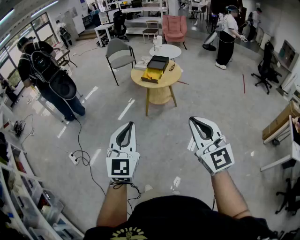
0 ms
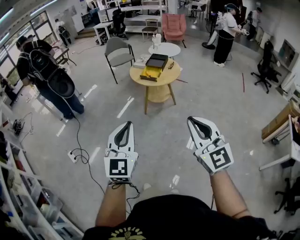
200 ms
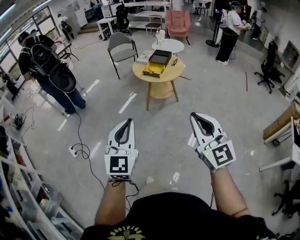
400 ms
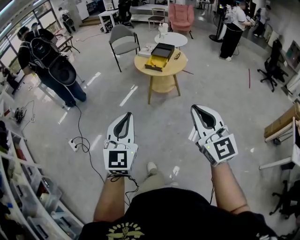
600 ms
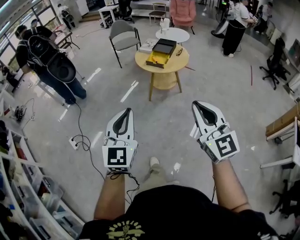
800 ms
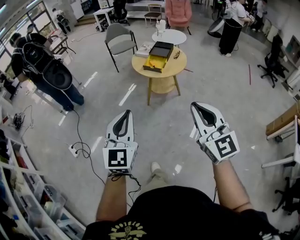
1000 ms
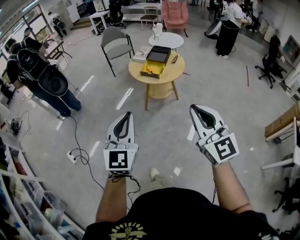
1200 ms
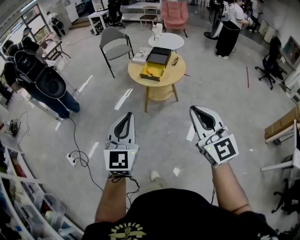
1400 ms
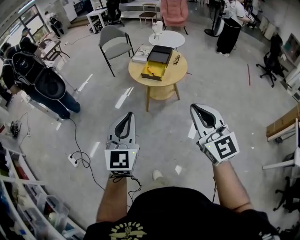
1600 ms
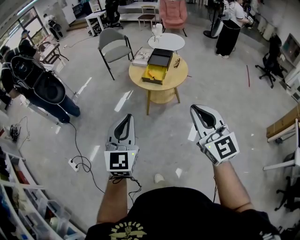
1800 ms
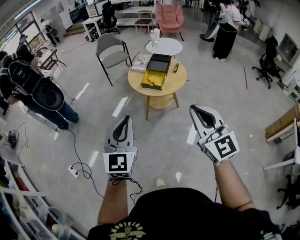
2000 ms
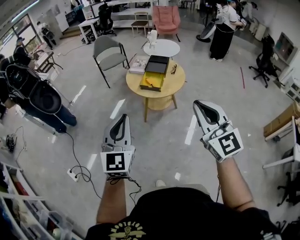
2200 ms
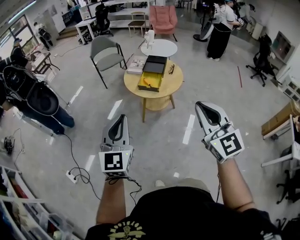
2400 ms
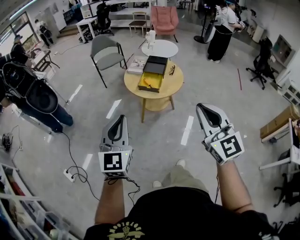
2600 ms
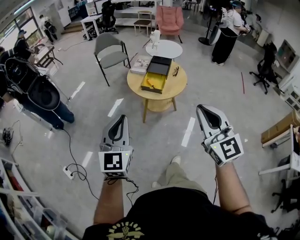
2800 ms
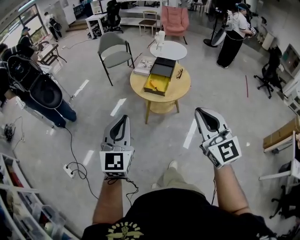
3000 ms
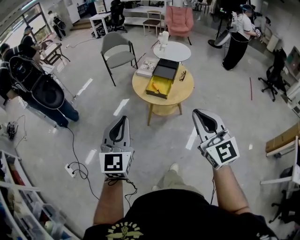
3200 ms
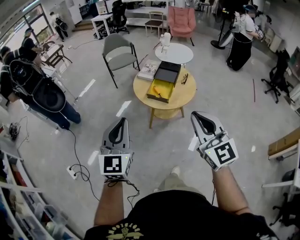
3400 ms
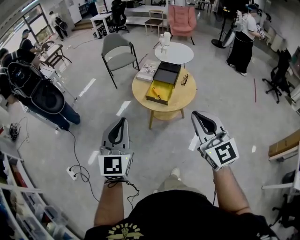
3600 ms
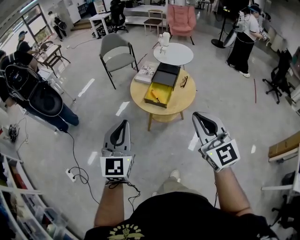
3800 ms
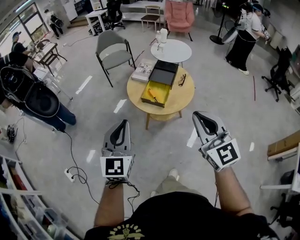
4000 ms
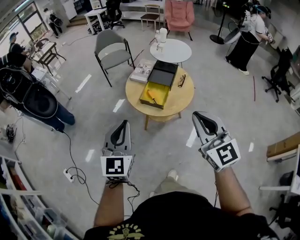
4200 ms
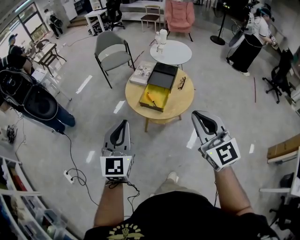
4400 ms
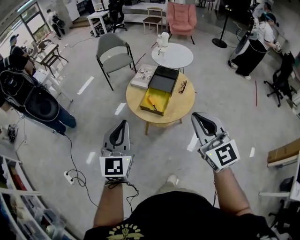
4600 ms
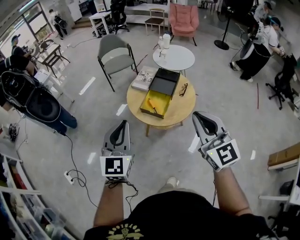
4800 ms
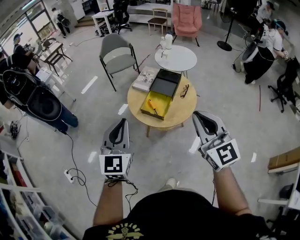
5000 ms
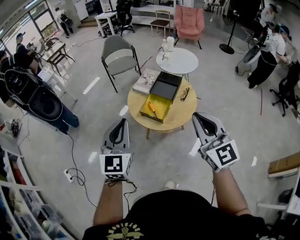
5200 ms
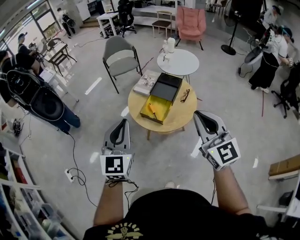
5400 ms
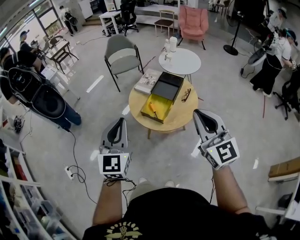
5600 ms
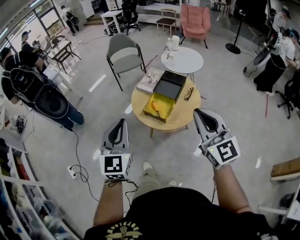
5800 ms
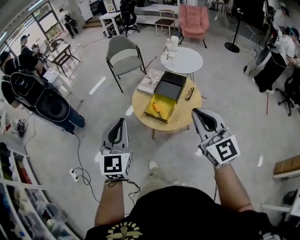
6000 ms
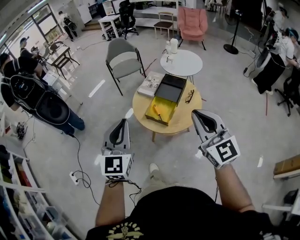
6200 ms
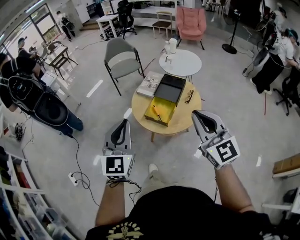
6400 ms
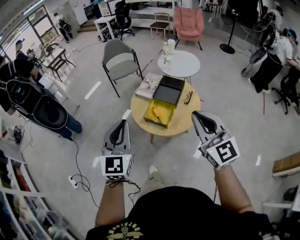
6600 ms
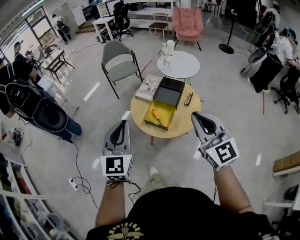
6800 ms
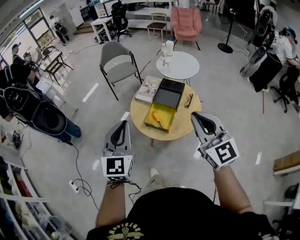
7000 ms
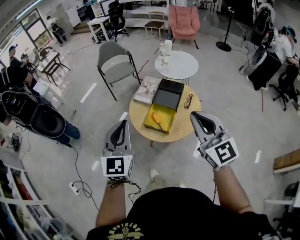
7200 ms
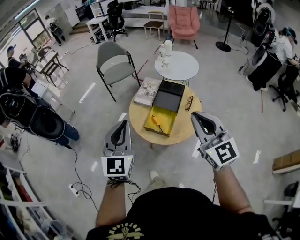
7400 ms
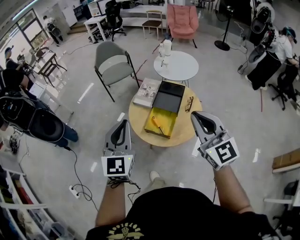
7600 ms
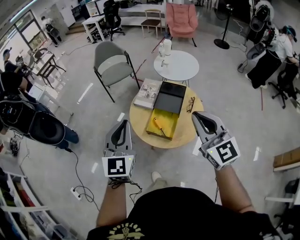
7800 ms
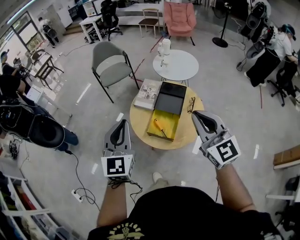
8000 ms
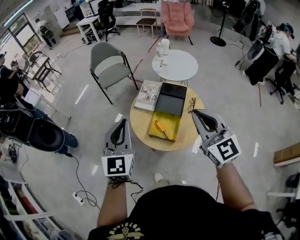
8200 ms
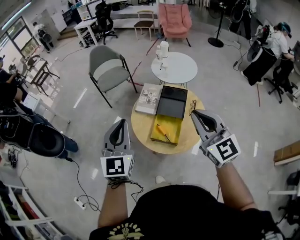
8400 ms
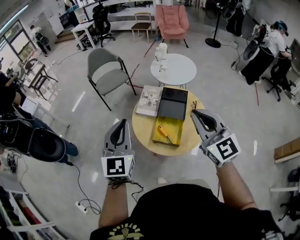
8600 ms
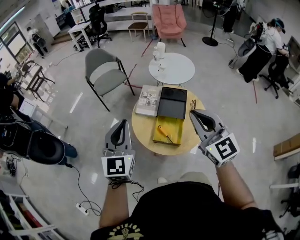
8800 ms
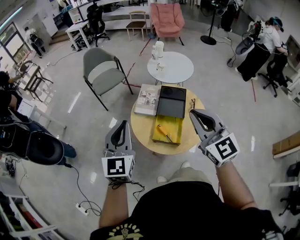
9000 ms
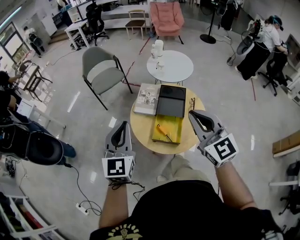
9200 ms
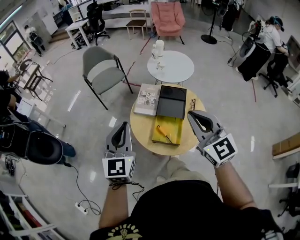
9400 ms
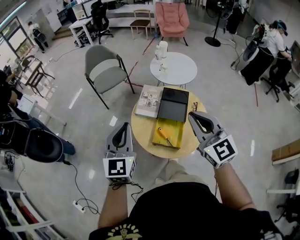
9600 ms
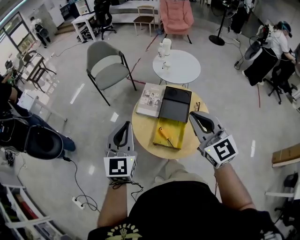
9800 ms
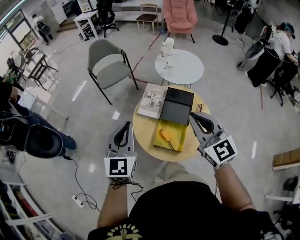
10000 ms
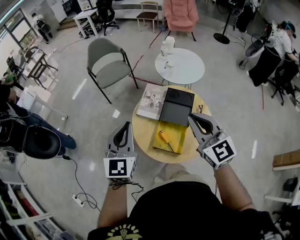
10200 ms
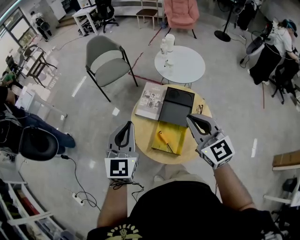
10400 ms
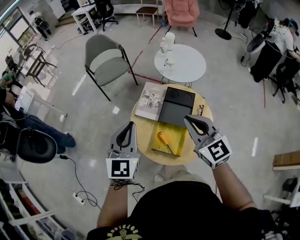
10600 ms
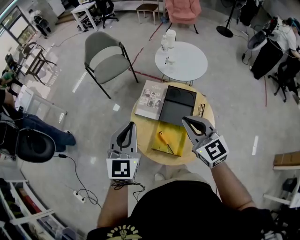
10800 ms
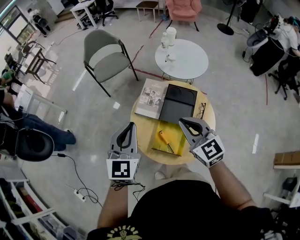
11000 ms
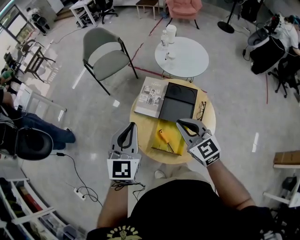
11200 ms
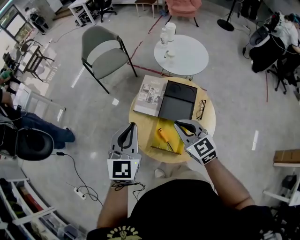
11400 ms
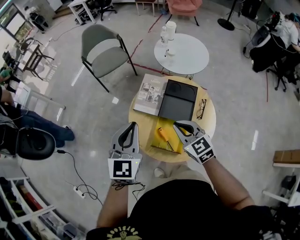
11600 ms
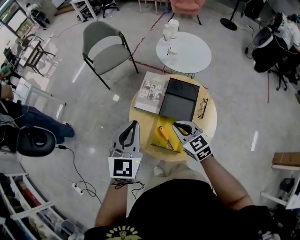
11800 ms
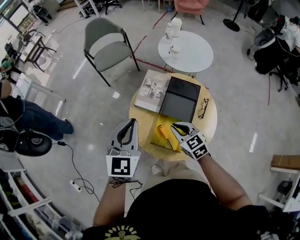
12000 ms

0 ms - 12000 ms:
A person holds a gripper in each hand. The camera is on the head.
0 ms - 1600 ms: Both grippers move forward, roughly 25 cm.
1600 ms - 3000 ms: The right gripper heads forward, covering about 10 cm; the left gripper is displaced forward and to the left by about 10 cm.
3000 ms - 4400 ms: The right gripper is displaced forward by about 20 cm. The left gripper moves forward and to the right, some 20 cm.
4400 ms - 6000 ms: The right gripper heads forward and to the right, covering about 10 cm; the left gripper travels forward by roughly 5 cm.
6000 ms - 7600 ms: The grippers both shift forward by about 15 cm.
7600 ms - 9000 ms: Both grippers travel together forward and to the left, roughly 10 cm.
9000 ms - 10400 ms: The left gripper moves forward, about 10 cm. The right gripper shifts roughly 15 cm forward and downward.
10400 ms - 12000 ms: The right gripper moves downward, some 25 cm, and swivels roughly 30 degrees. Meanwhile the left gripper heads downward, covering about 5 cm.

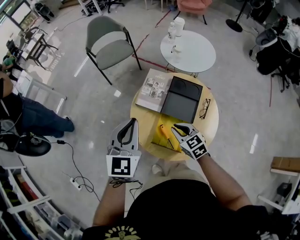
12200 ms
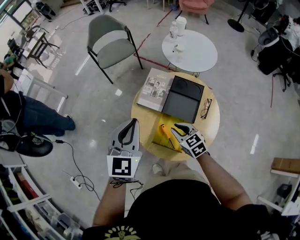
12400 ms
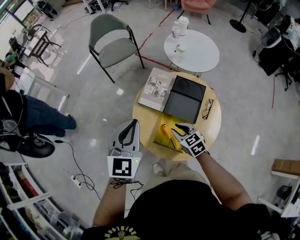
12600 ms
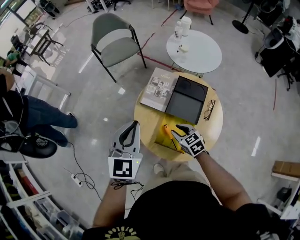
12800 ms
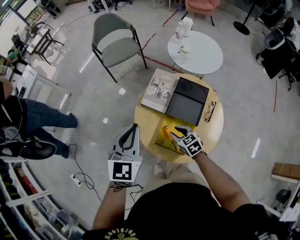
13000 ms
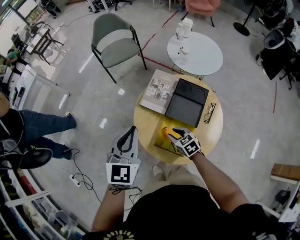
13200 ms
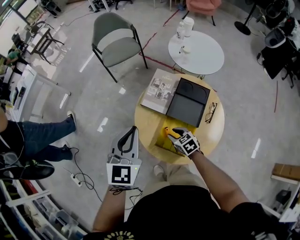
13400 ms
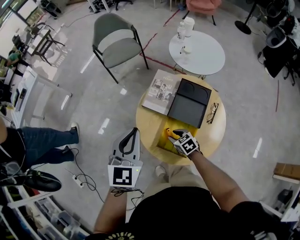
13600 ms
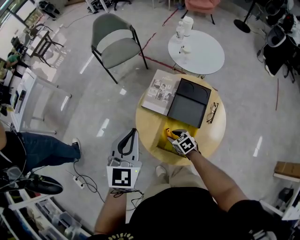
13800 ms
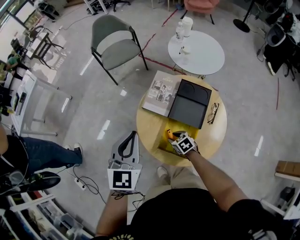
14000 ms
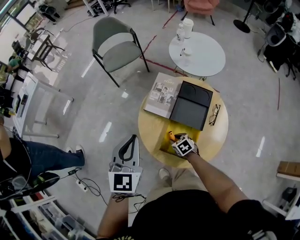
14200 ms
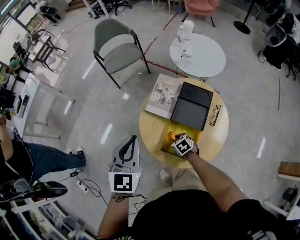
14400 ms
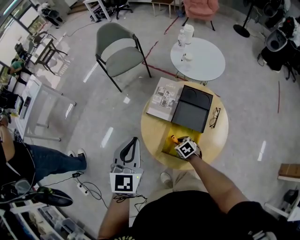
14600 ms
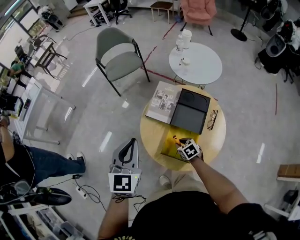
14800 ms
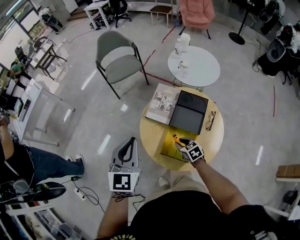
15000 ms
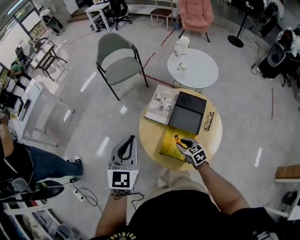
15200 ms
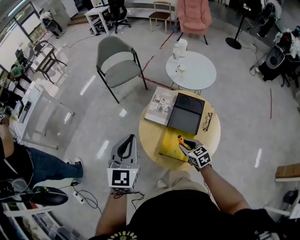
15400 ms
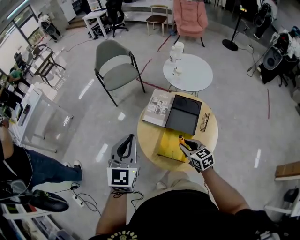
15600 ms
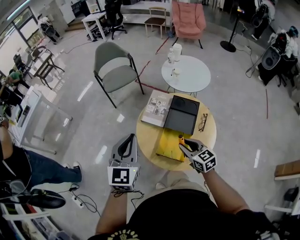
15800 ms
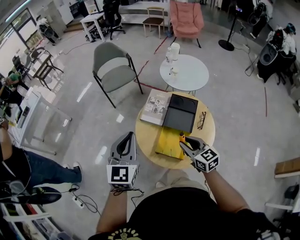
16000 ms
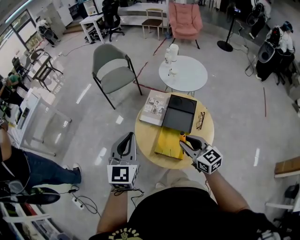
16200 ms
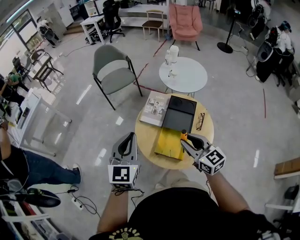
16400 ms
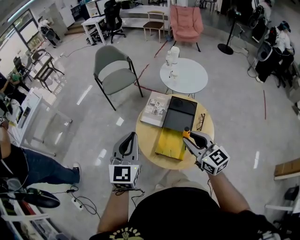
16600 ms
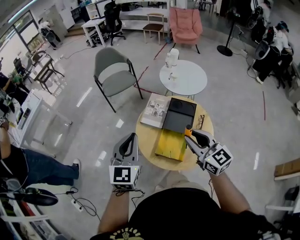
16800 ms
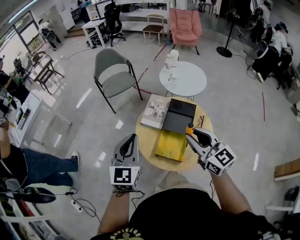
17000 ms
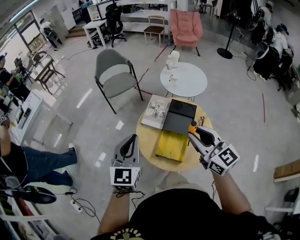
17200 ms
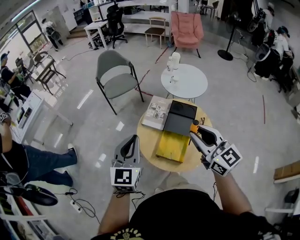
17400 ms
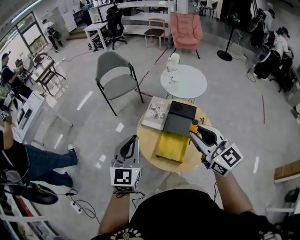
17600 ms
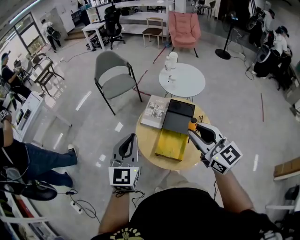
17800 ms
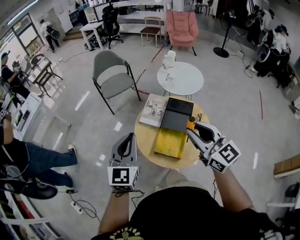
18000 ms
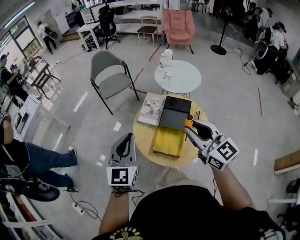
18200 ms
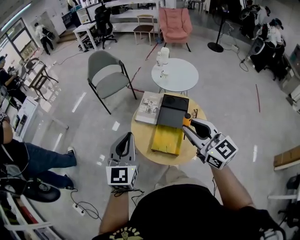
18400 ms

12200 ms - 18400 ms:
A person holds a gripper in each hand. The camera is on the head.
12200 ms - 13800 ms: The right gripper goes some 15 cm downward, rotates about 20 degrees, and opens.
13800 ms - 15400 ms: The left gripper shifts by some 5 cm. Meanwhile the right gripper shifts some 15 cm upward.
15400 ms - 16800 ms: The right gripper shifts roughly 25 cm upward, and rotates approximately 30 degrees.
16800 ms - 18400 ms: The right gripper moves upward, roughly 5 cm.

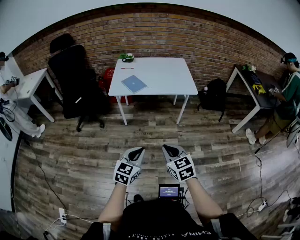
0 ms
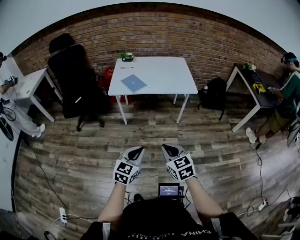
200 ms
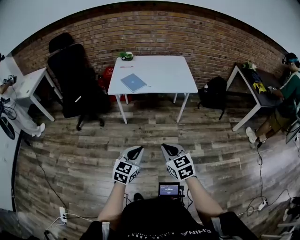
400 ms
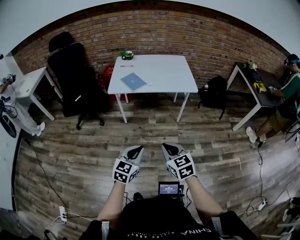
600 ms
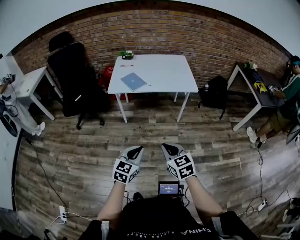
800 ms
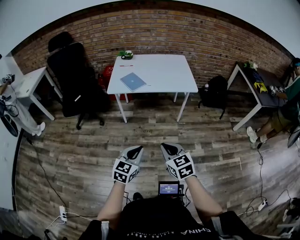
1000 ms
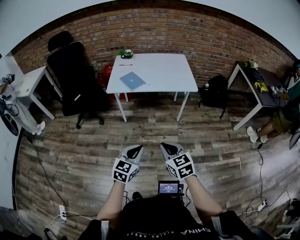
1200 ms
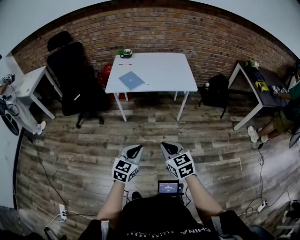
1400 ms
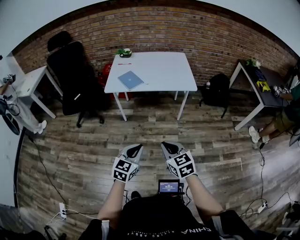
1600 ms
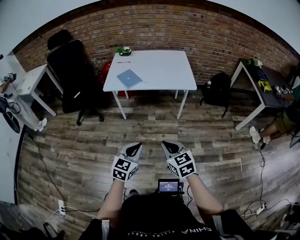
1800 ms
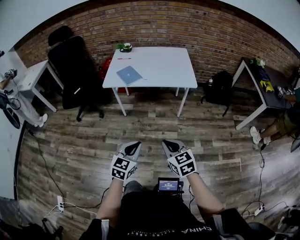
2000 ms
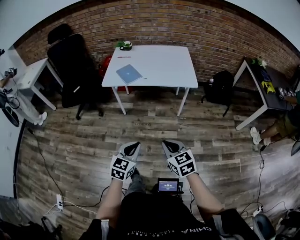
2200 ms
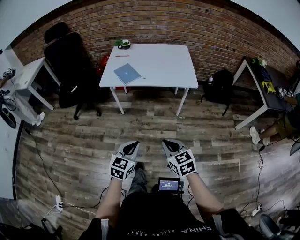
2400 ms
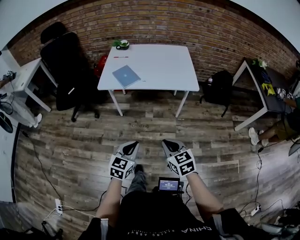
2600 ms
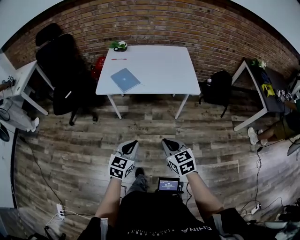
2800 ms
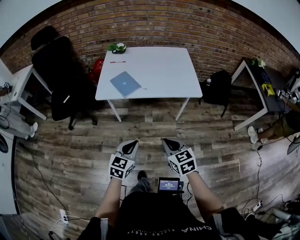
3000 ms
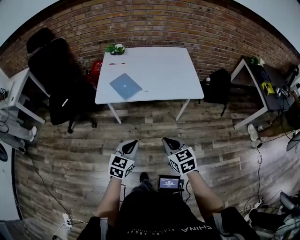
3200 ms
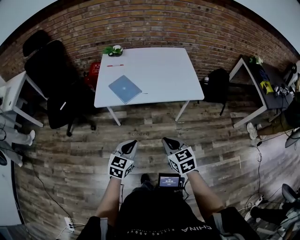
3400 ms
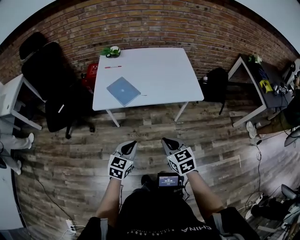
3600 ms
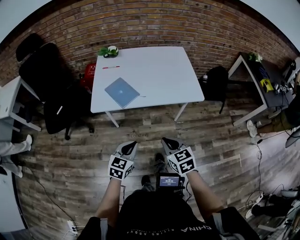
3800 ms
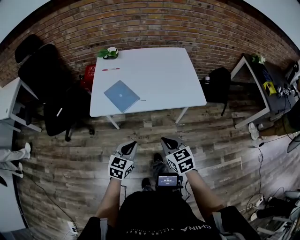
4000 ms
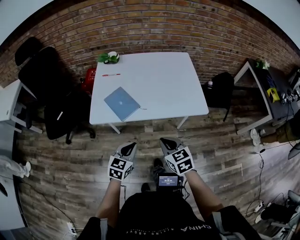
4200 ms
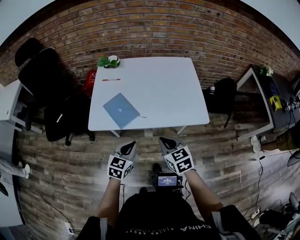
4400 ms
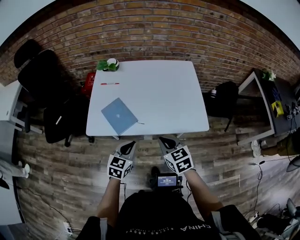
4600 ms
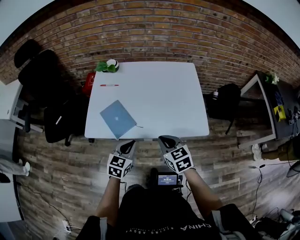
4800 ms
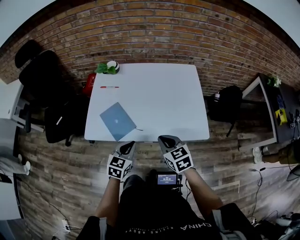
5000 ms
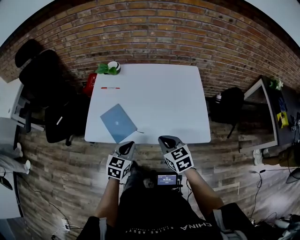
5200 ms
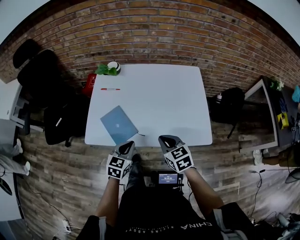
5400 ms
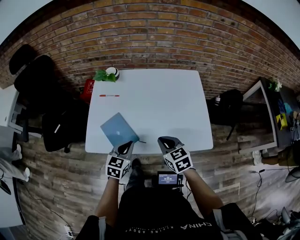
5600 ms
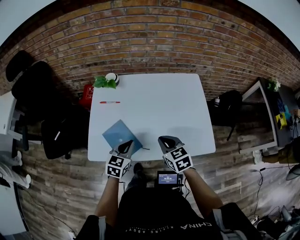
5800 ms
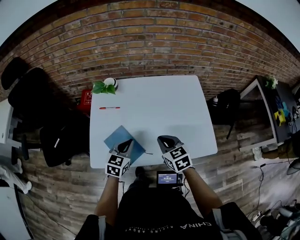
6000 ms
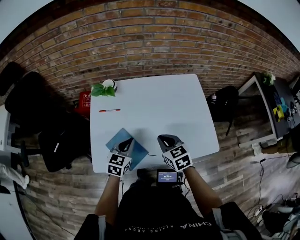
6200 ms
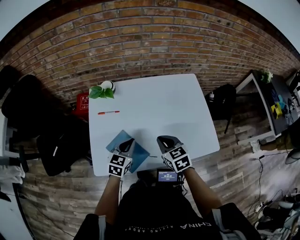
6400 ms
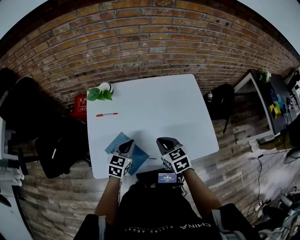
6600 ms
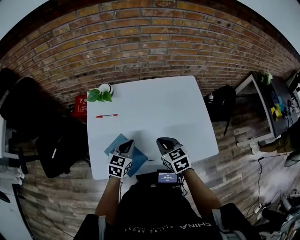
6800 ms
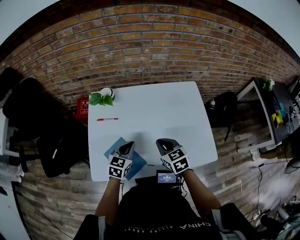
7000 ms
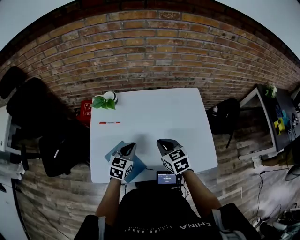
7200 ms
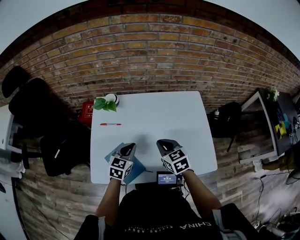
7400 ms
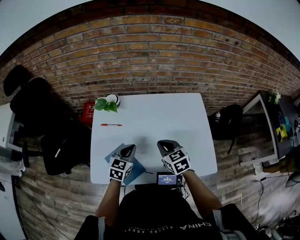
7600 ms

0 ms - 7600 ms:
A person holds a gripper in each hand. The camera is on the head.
0 ms - 1600 ms: The right gripper moves about 5 cm. The left gripper changes place by approximately 5 cm.
1600 ms - 3000 ms: The two grippers go approximately 20 cm forward.
3000 ms - 4600 ms: The grippers both shift forward by approximately 30 cm.
4600 ms - 6000 ms: The two grippers go about 20 cm forward.
6000 ms - 7600 ms: The grippers both shift forward by some 10 cm.
